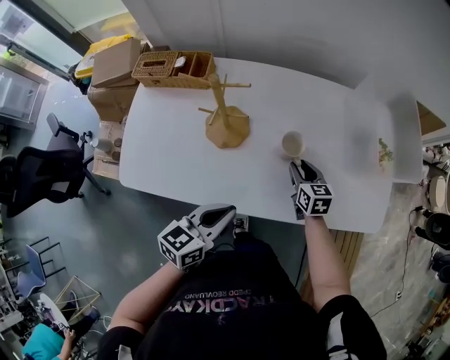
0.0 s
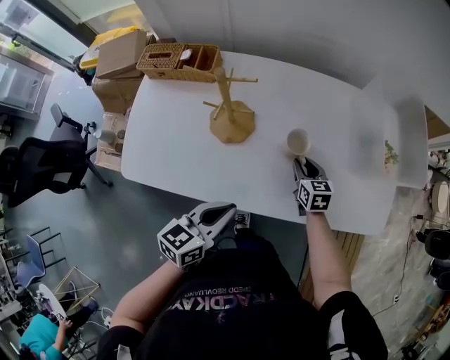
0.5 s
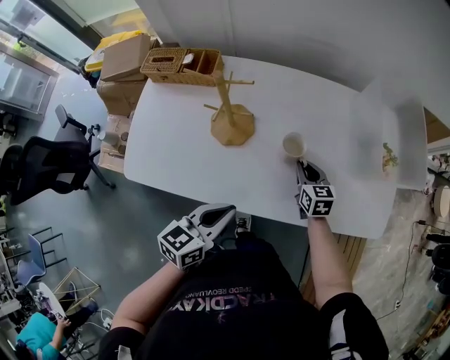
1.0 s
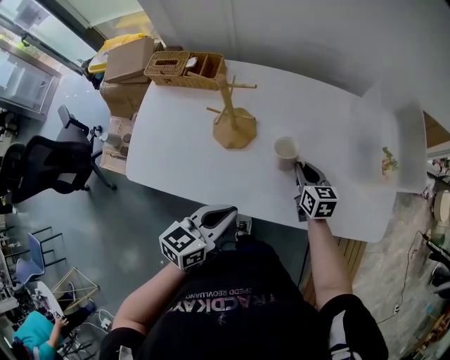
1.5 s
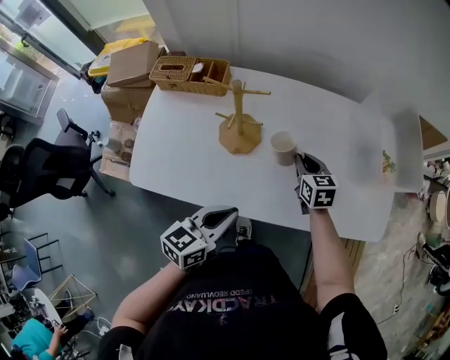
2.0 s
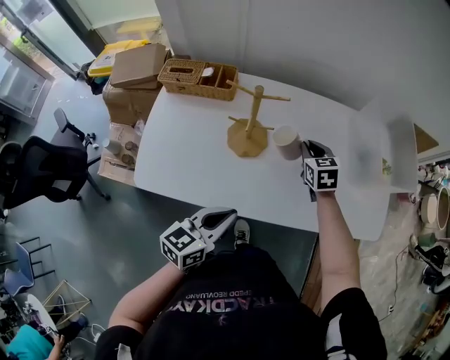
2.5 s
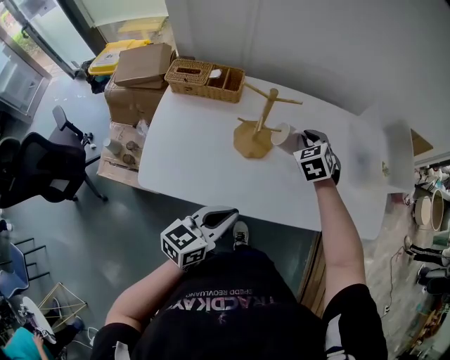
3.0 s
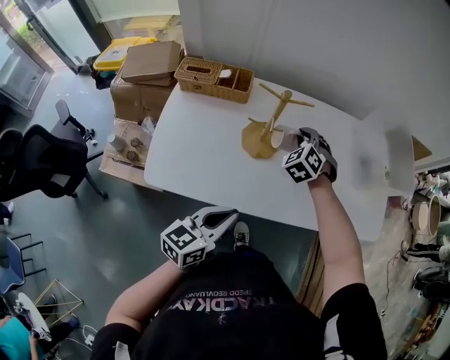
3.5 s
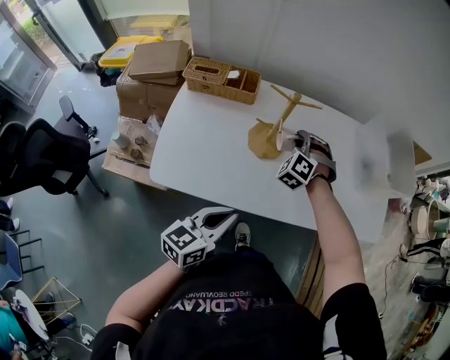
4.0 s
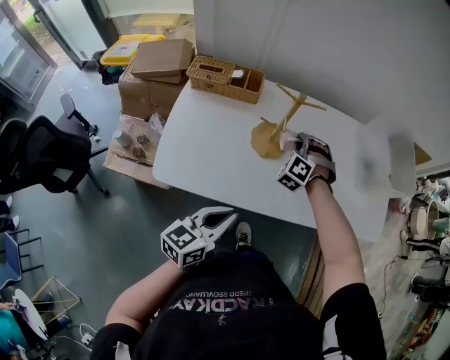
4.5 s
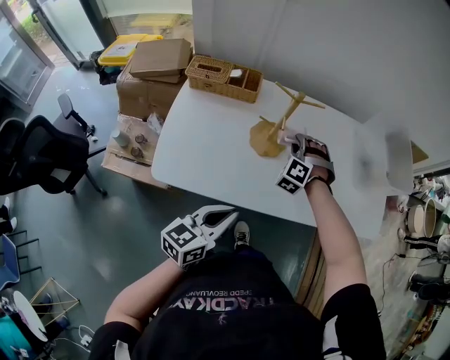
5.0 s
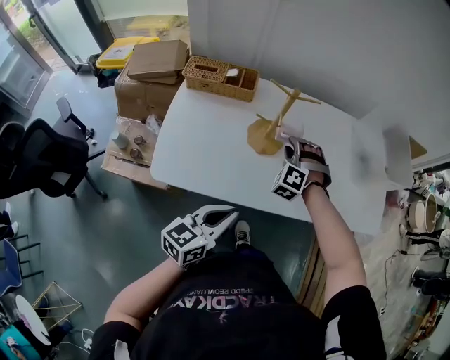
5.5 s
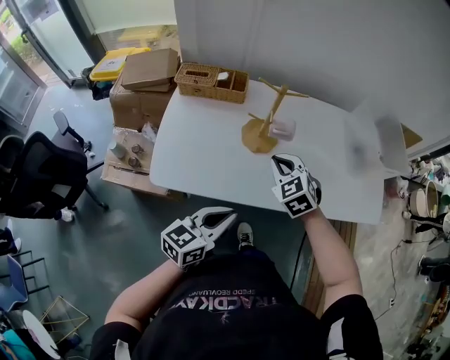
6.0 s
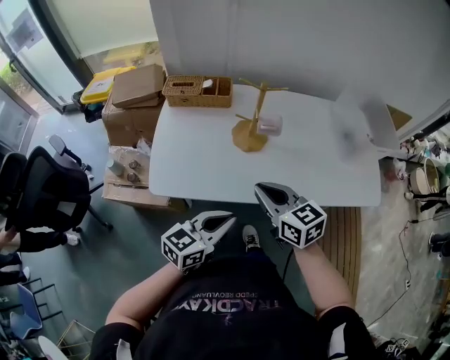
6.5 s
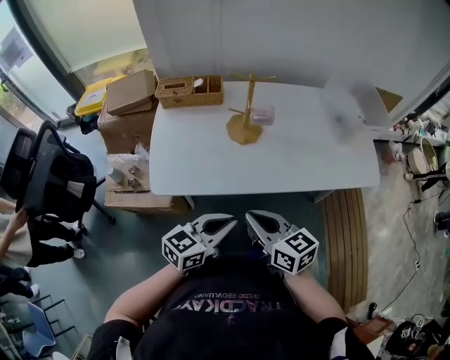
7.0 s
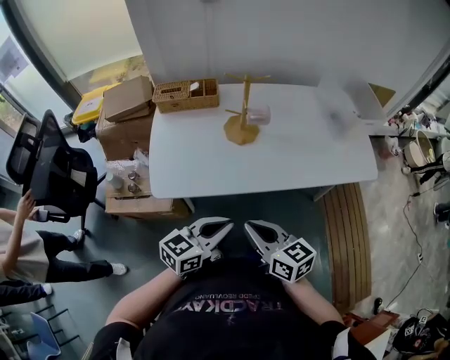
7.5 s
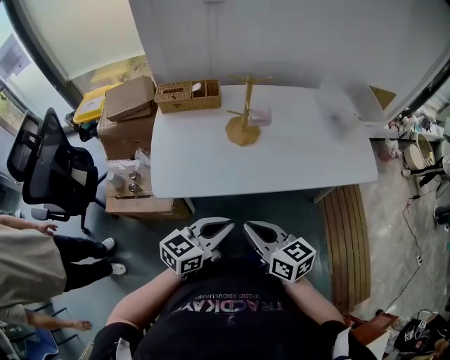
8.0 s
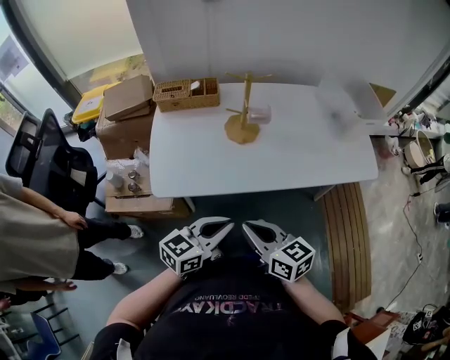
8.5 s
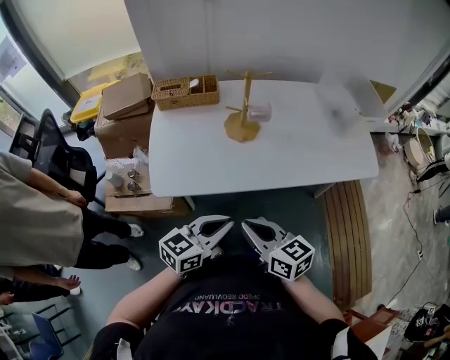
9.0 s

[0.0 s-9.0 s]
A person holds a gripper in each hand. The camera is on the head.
0.0 to 2.0 s: The right gripper travels upward by approximately 5 cm.
2.0 to 4.5 s: The right gripper moves to the left, approximately 15 cm, and rolls counterclockwise, seen from behind, by approximately 80 degrees; the left gripper travels to the left and backward by roughly 15 cm.
4.5 to 7.0 s: The left gripper goes some 10 cm backward. Meanwhile the right gripper heads backward, covering some 35 cm, and twists some 90 degrees clockwise, seen from behind.
7.0 to 9.0 s: There are only small adjustments of the grippers.

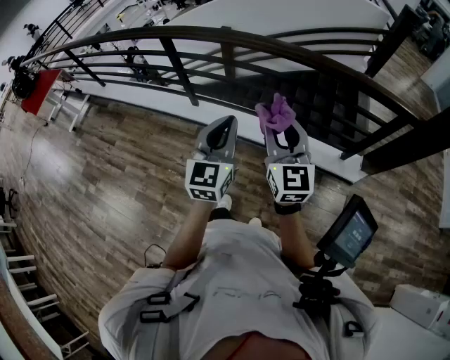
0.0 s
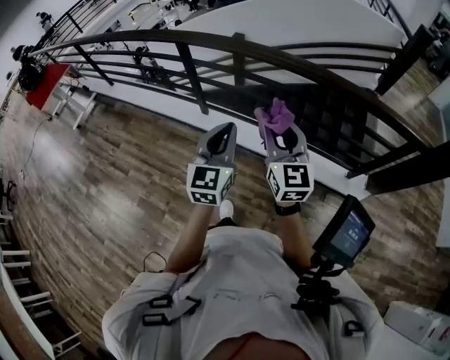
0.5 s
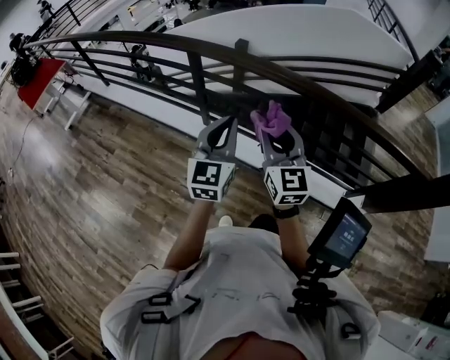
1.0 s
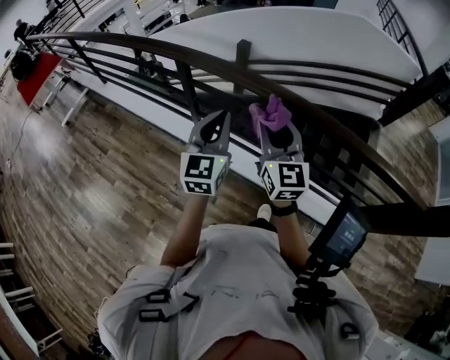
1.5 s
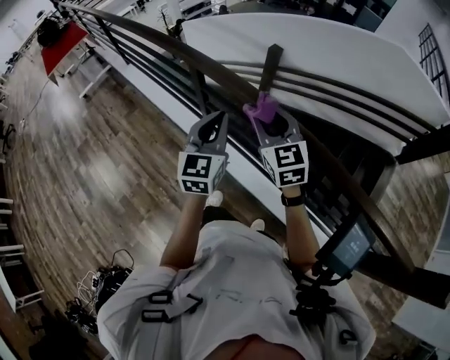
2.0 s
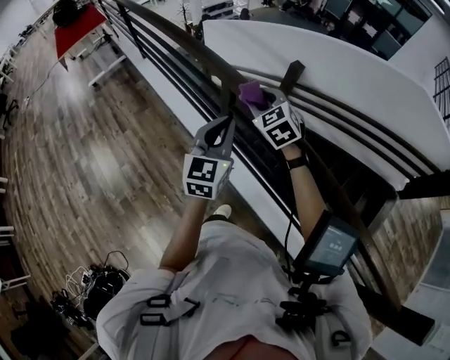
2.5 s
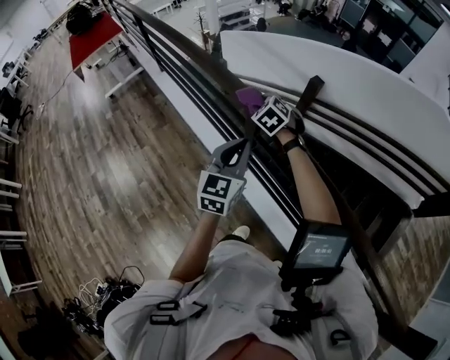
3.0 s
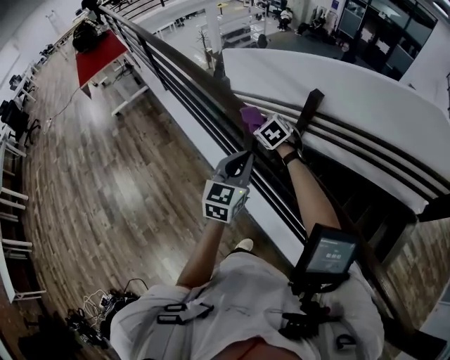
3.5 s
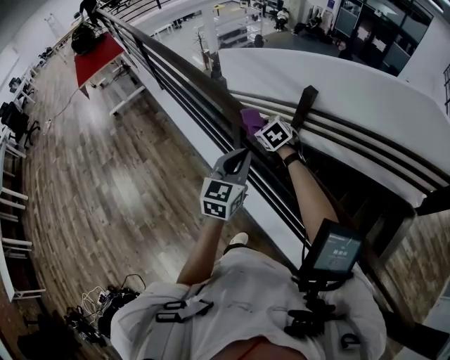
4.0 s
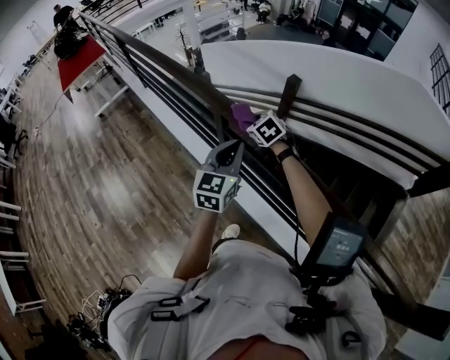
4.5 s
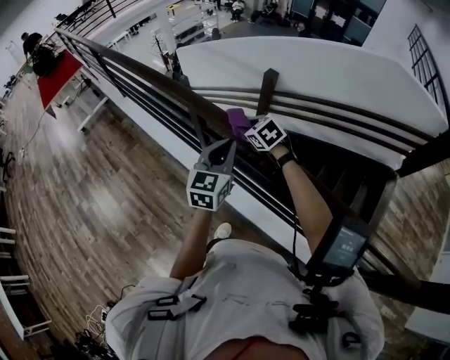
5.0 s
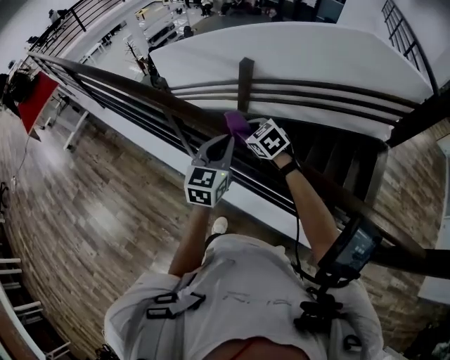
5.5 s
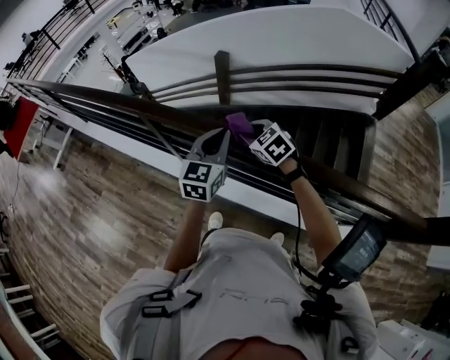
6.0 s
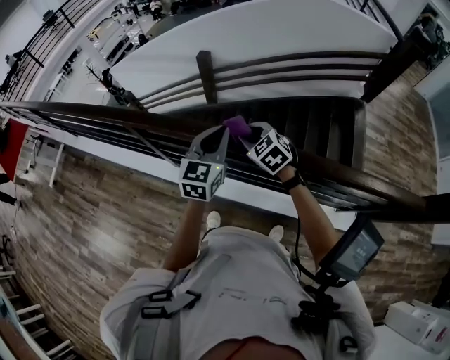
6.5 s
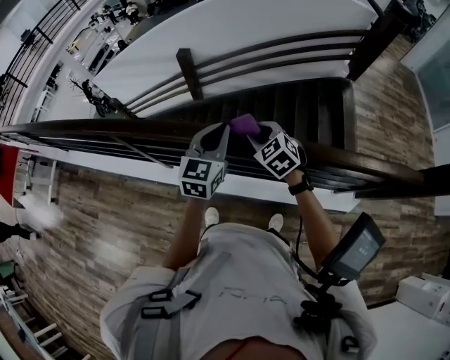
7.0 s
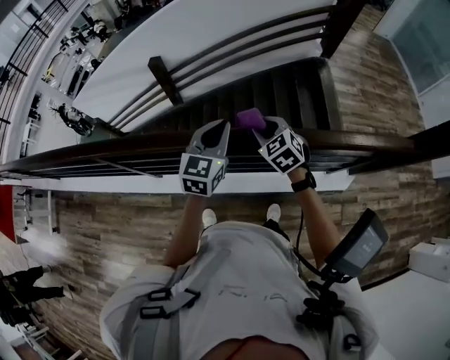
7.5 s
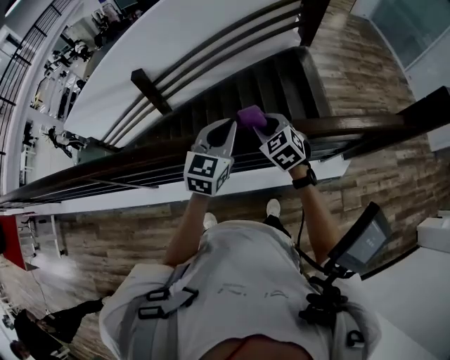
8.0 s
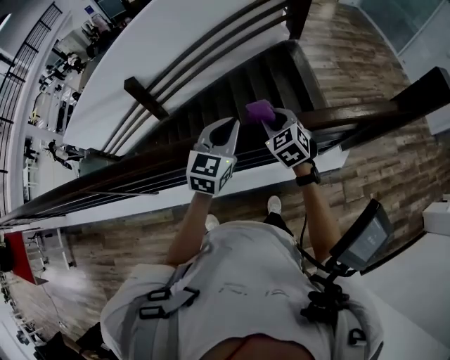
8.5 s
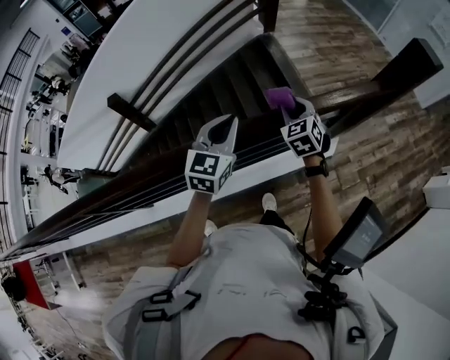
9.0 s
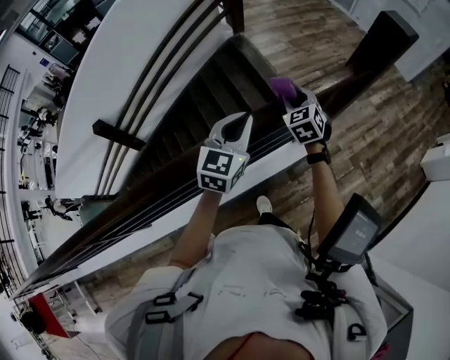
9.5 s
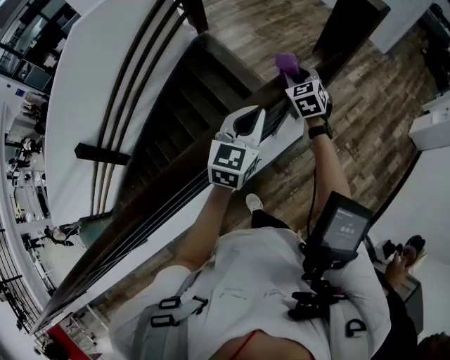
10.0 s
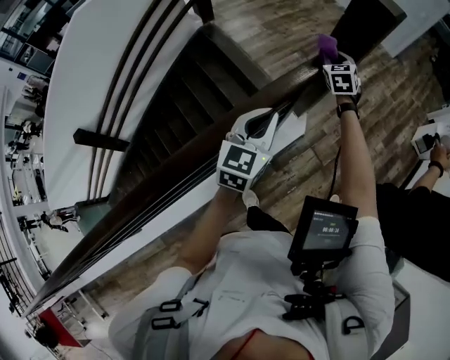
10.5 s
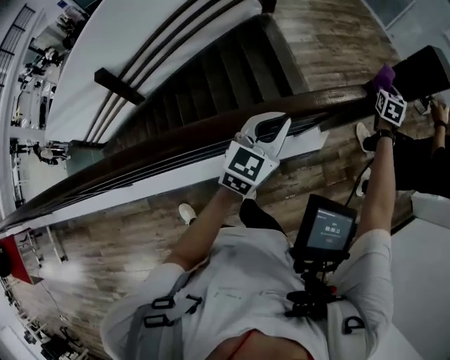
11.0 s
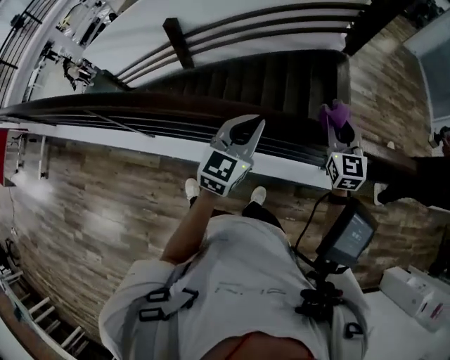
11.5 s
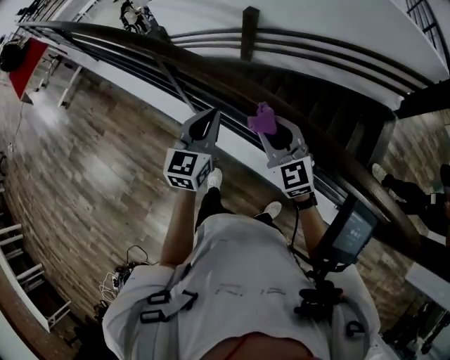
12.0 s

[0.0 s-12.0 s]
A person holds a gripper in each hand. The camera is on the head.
0.0 to 2.0 s: The two grippers go approximately 40 cm forward. The right gripper swivels approximately 30 degrees; the left gripper rotates about 20 degrees.
2.0 to 4.0 s: The right gripper travels forward, downward and to the left by approximately 35 cm, and tips its fingers downward by about 30 degrees, while the left gripper shifts some 15 cm forward and to the left.
4.0 to 6.0 s: The left gripper goes approximately 20 cm to the right, and swivels some 20 degrees, while the right gripper moves to the right and backward, approximately 30 cm.
6.0 to 8.0 s: The left gripper moves approximately 30 cm, and turns by about 30 degrees. The right gripper ends up approximately 30 cm from where it was, and changes its angle by about 40 degrees.
8.0 to 10.0 s: The two grippers travel together, some 50 cm. The left gripper turns by approximately 30 degrees. The right gripper swivels roughly 50 degrees.
10.0 to 12.0 s: Both grippers are carried approximately 80 cm. The right gripper swivels some 90 degrees. Meanwhile the left gripper swivels about 80 degrees.

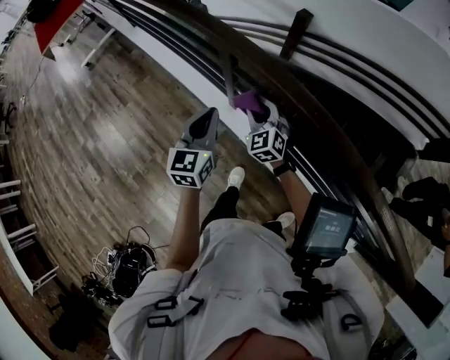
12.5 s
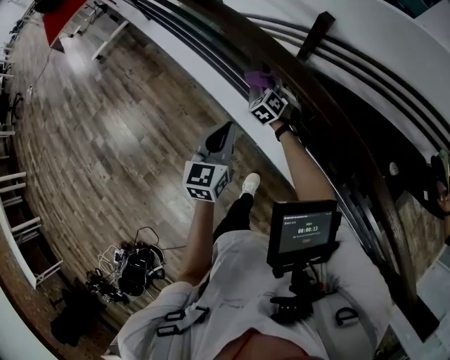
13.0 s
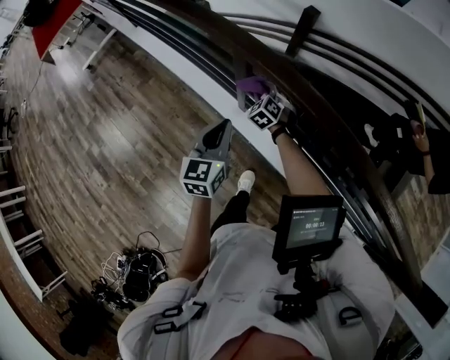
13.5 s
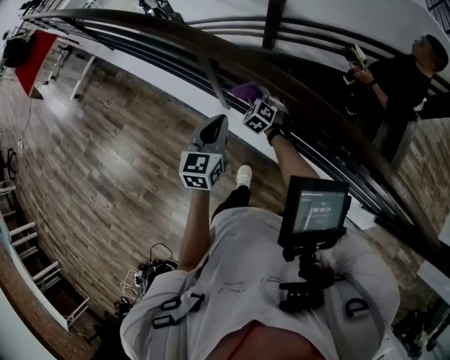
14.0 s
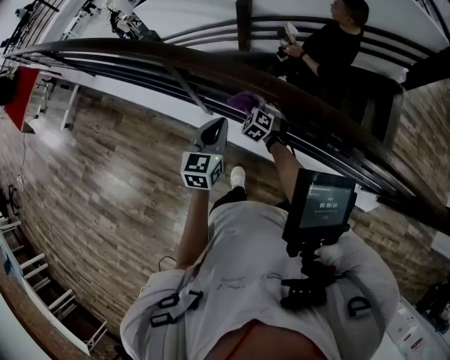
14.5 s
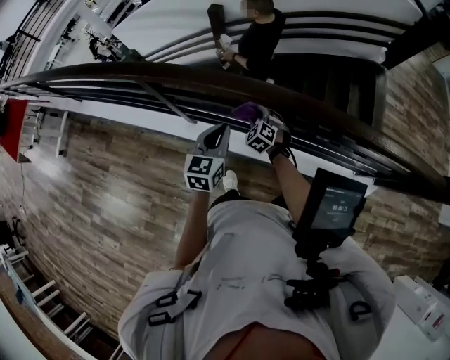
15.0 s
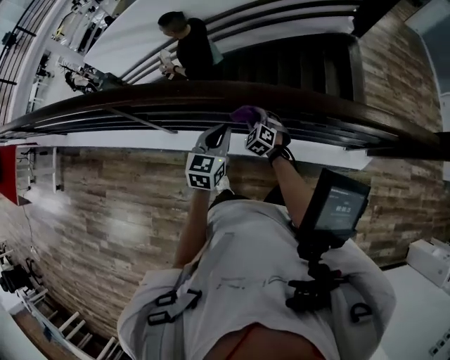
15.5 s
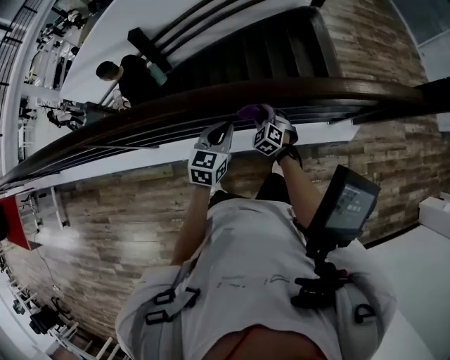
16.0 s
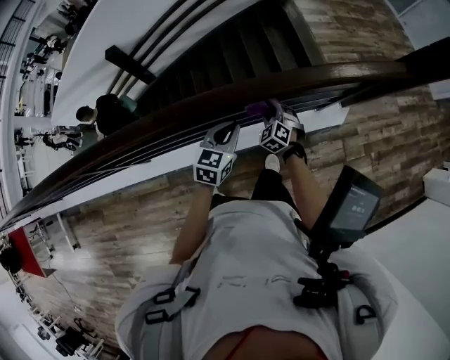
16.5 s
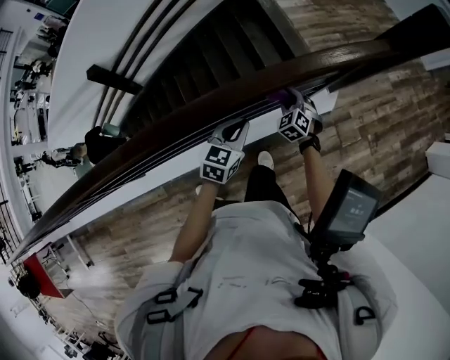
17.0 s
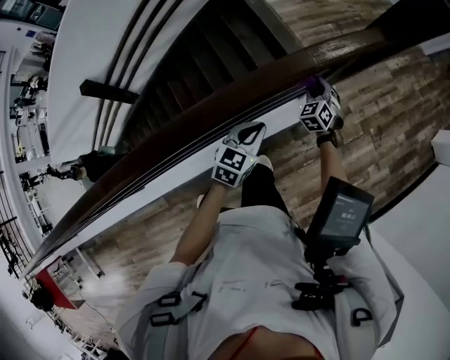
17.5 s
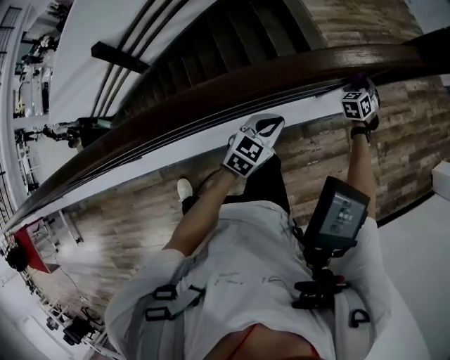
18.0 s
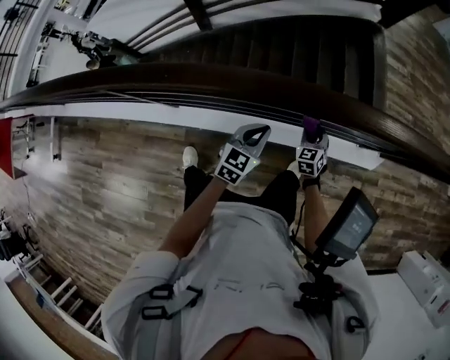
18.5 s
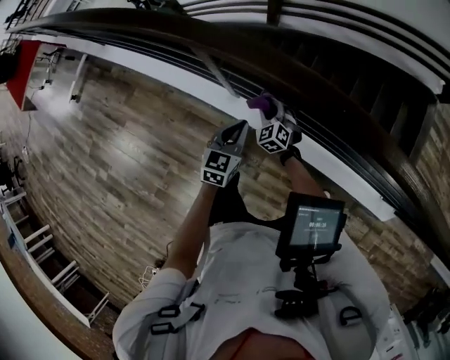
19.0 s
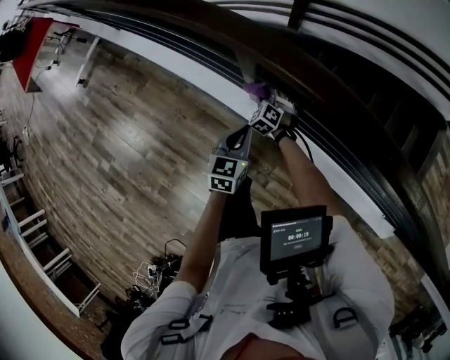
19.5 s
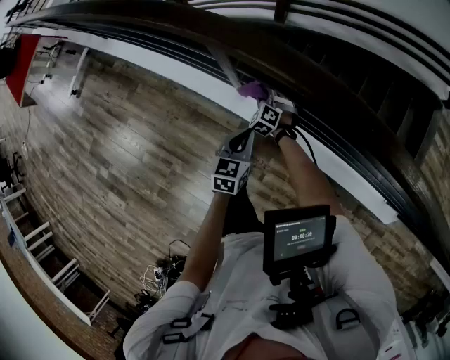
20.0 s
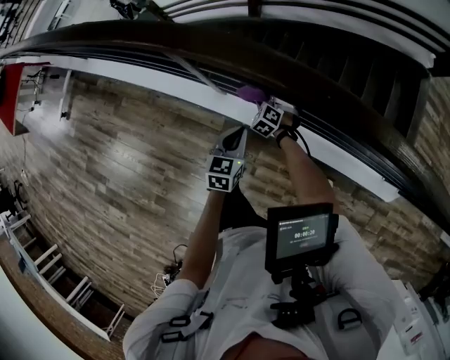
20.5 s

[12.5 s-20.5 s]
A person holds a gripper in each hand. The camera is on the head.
12.5 to 14.5 s: The left gripper travels to the right by some 10 cm, and rotates roughly 20 degrees, while the right gripper heads downward and to the right, covering some 20 cm, and turns by approximately 20 degrees.
14.5 to 16.5 s: The two grippers travel together, roughly 50 cm. The left gripper rotates roughly 50 degrees. The right gripper changes its angle by roughly 40 degrees.
16.5 to 18.5 s: The right gripper changes its angle by roughly 20 degrees.
18.5 to 20.5 s: The left gripper shifts by some 35 cm, and swivels roughly 30 degrees; the right gripper changes place by roughly 50 cm, twists approximately 50 degrees counterclockwise, seen from behind, and opens up.
